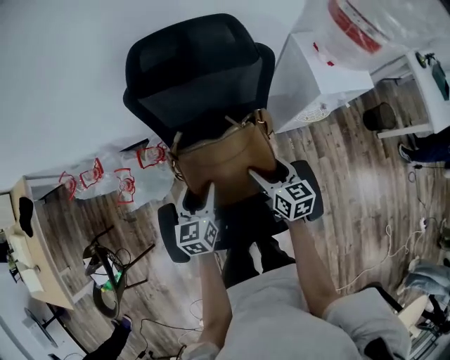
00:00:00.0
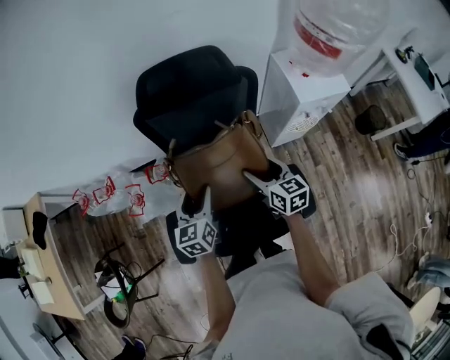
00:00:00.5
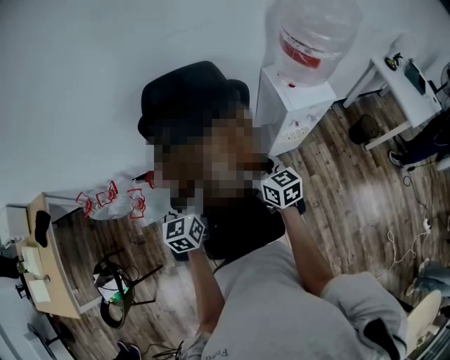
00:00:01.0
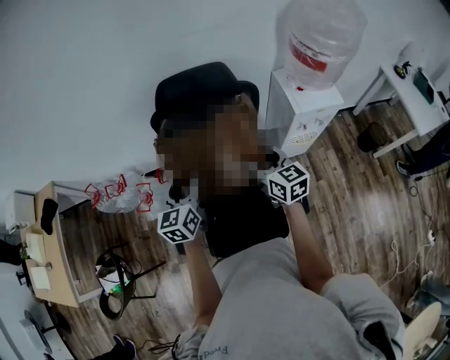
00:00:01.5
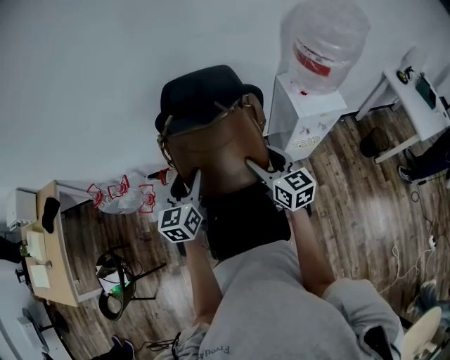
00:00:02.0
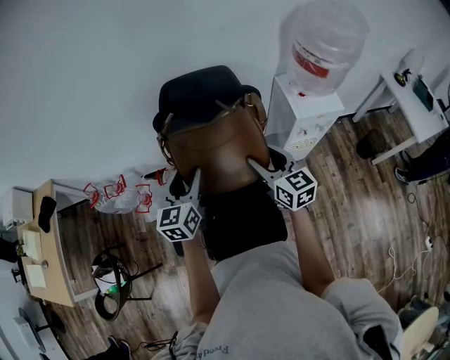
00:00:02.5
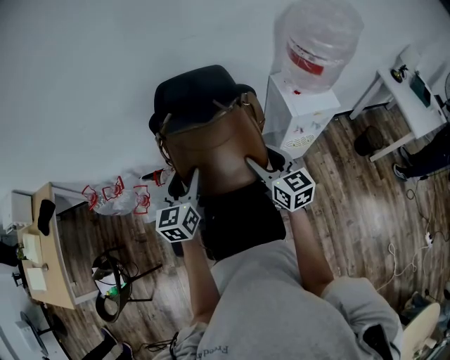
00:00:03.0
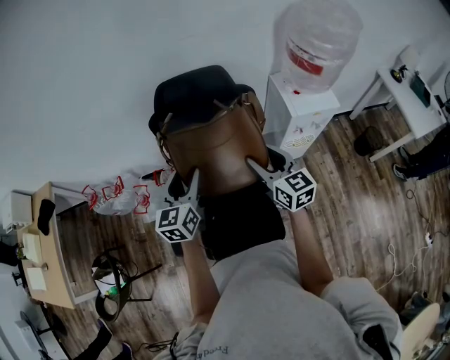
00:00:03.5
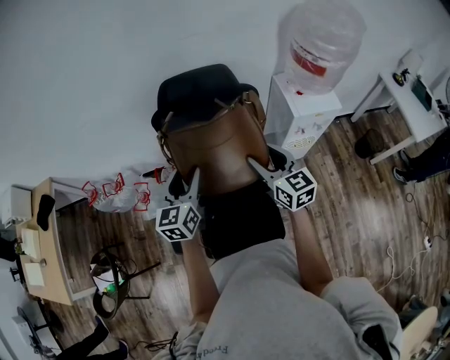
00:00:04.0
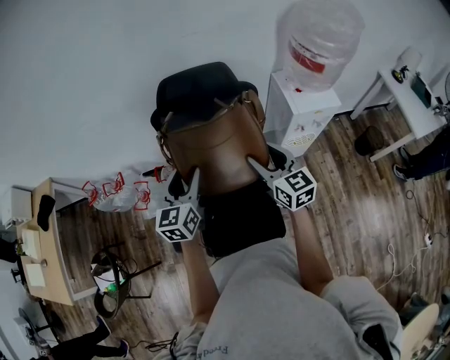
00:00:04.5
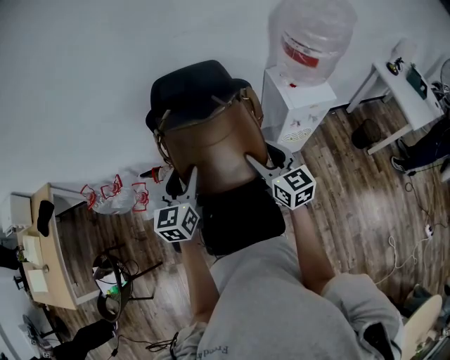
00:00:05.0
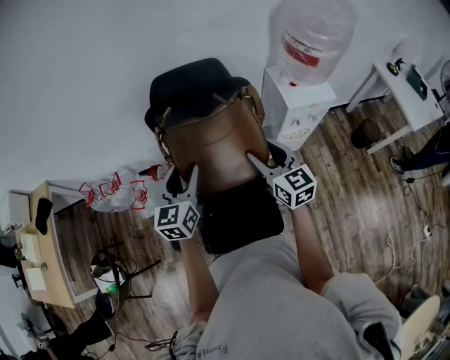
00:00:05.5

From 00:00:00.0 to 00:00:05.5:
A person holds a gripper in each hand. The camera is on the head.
From 00:00:00.0 to 00:00:02.0: The grippers both shift upward by approximately 25 cm. The right gripper rotates approximately 20 degrees.
From 00:00:02.0 to 00:00:05.5: There are only small adjustments of the grippers.

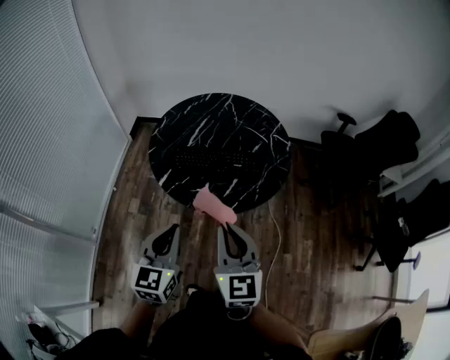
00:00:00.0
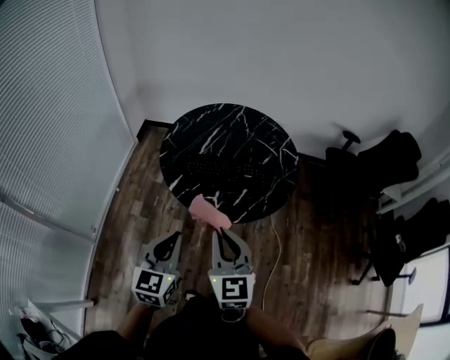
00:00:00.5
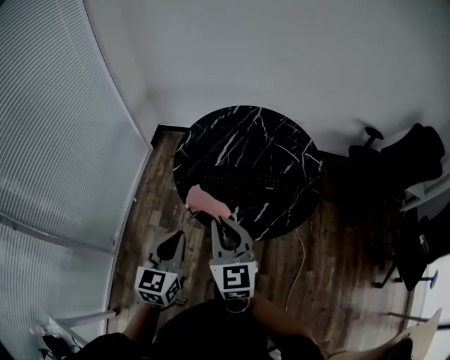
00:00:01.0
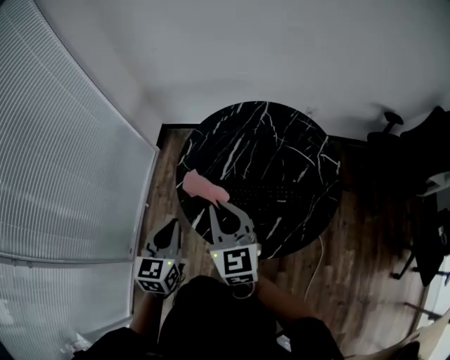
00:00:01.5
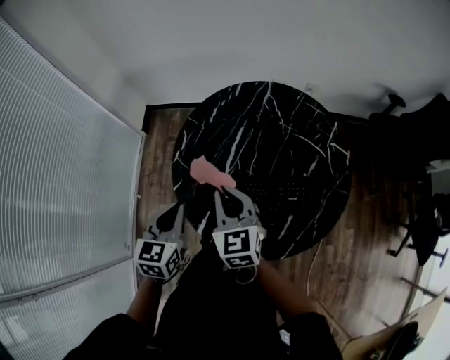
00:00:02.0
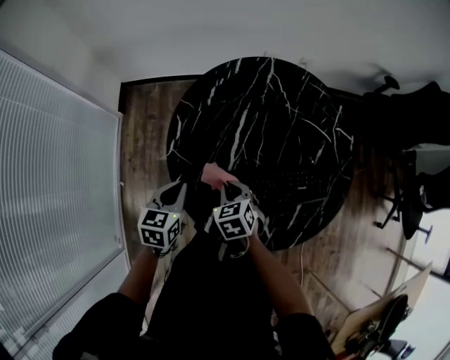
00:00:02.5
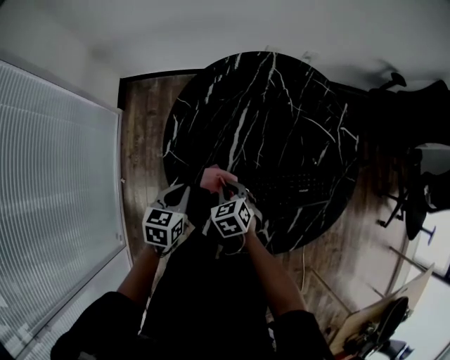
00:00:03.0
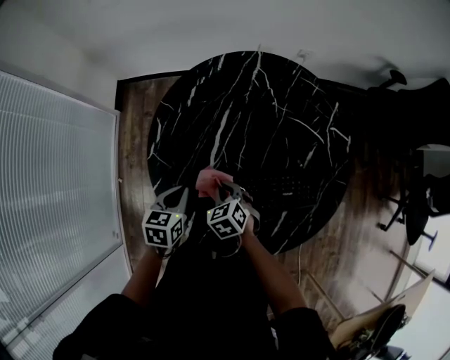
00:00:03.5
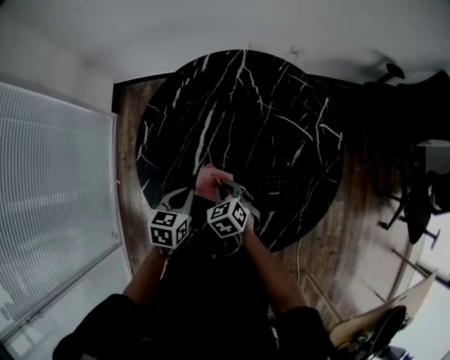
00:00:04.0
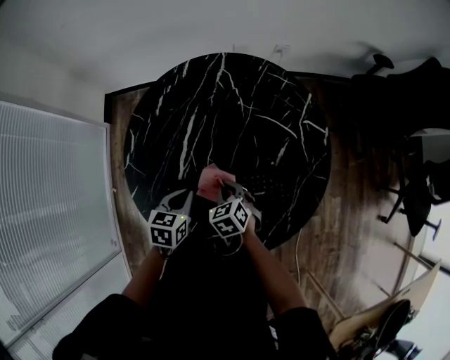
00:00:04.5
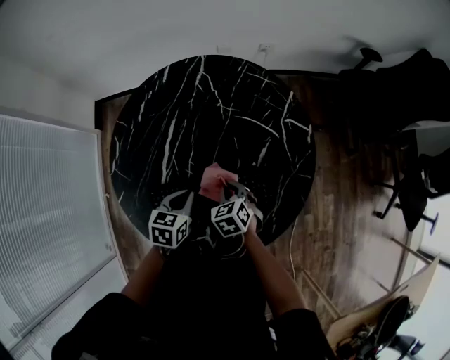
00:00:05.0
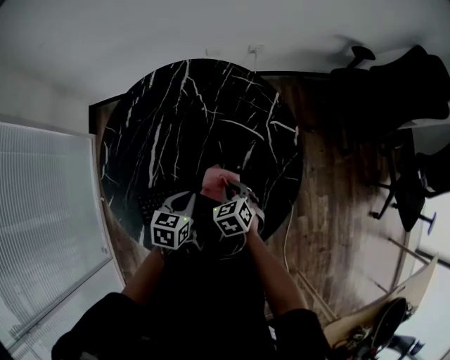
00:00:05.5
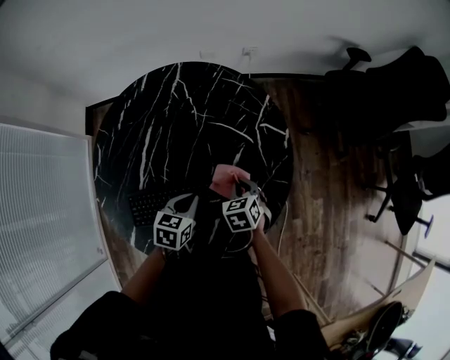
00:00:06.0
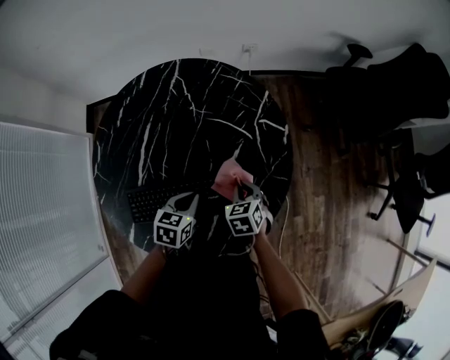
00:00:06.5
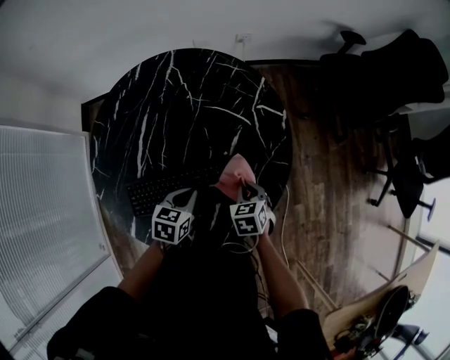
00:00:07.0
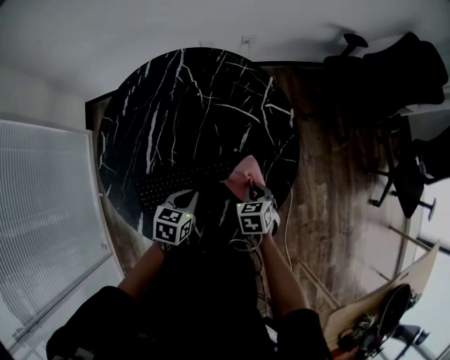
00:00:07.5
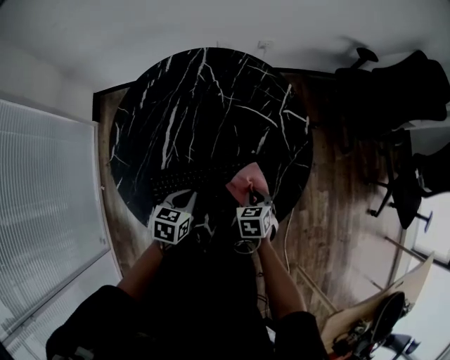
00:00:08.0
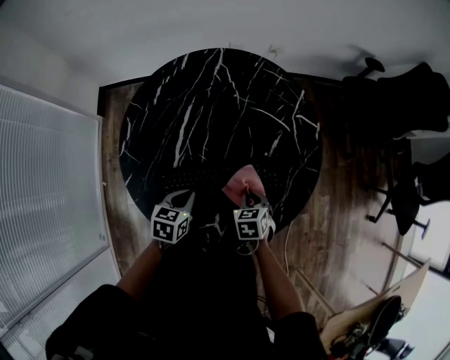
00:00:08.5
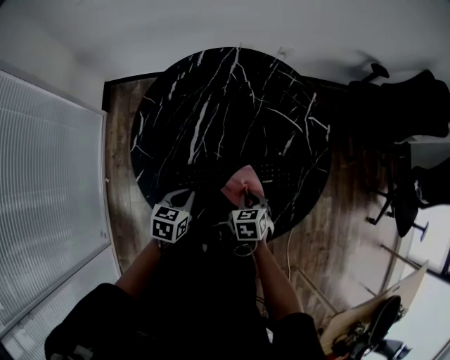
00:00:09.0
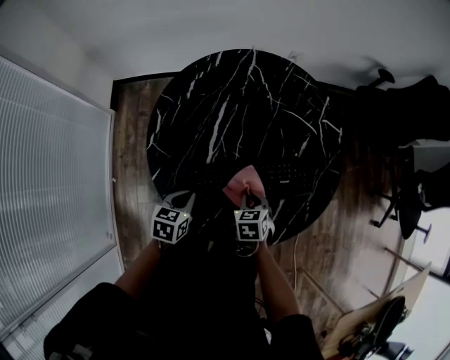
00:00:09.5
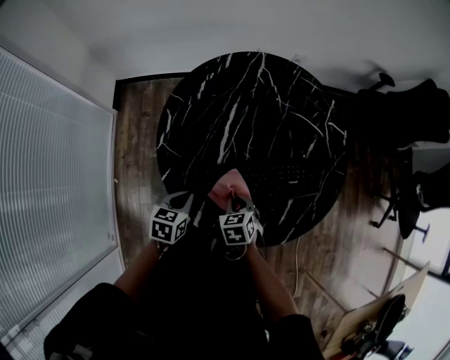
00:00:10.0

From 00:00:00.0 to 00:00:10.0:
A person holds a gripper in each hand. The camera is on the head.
From 00:00:00.0 to 00:00:02.0: Both grippers are carried forward and to the left, about 40 cm.
From 00:00:02.0 to 00:00:04.0: The left gripper heads downward, to the right and forward, covering roughly 20 cm, and turns by approximately 20 degrees, while the right gripper is displaced downward by some 25 cm, and points its fingers approximately 30 degrees further downward.
From 00:00:04.0 to 00:00:06.0: Both grippers travel together to the right, approximately 25 cm.
From 00:00:06.0 to 00:00:08.0: The left gripper heads backward and to the left, covering roughly 10 cm. The right gripper travels backward by approximately 10 cm.
From 00:00:08.0 to 00:00:10.0: Both grippers travel together to the left and backward, roughly 25 cm.

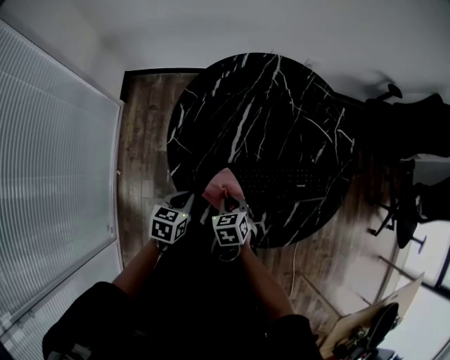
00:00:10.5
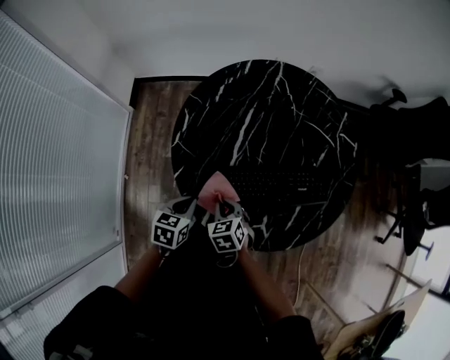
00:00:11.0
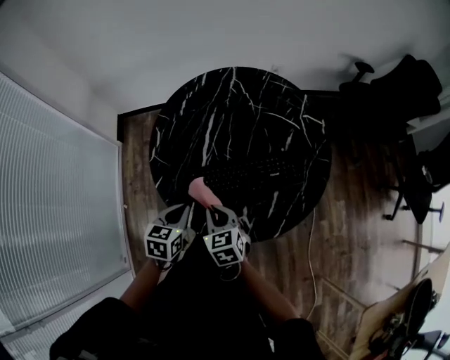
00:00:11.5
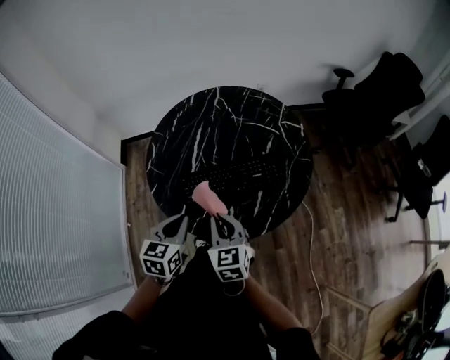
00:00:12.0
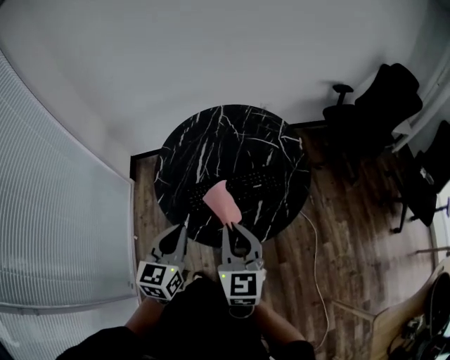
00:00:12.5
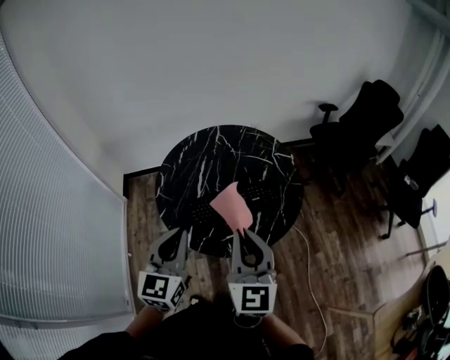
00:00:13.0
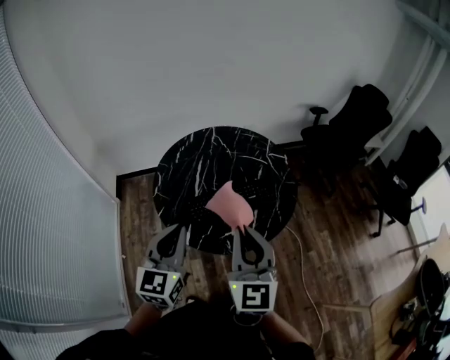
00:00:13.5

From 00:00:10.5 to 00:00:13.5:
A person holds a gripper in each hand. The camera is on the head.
From 00:00:10.5 to 00:00:12.0: Both grippers move upward, to the right and backward, approximately 25 cm. The left gripper changes its angle by about 20 degrees. Meanwhile the right gripper angles its fingers upward, by roughly 30 degrees.
From 00:00:12.0 to 00:00:13.5: The grippers both shift upward by about 20 cm. The left gripper rotates roughly 30 degrees. The right gripper turns by approximately 30 degrees.

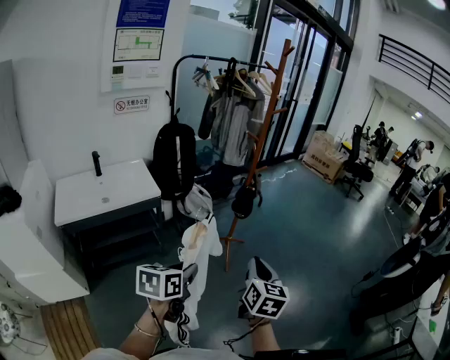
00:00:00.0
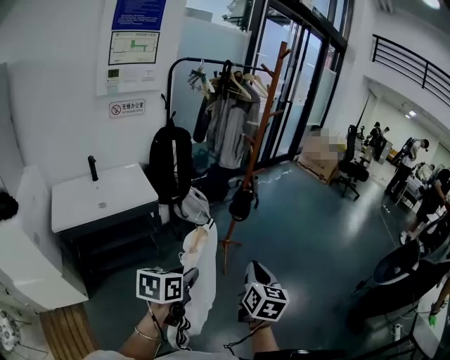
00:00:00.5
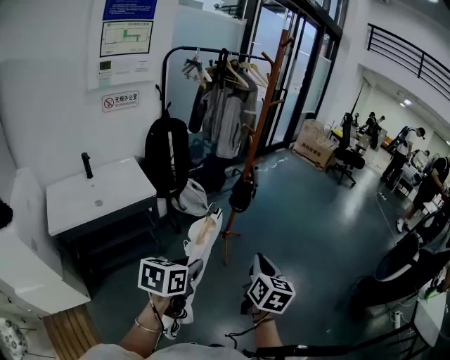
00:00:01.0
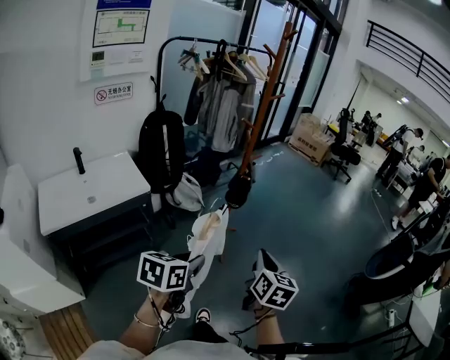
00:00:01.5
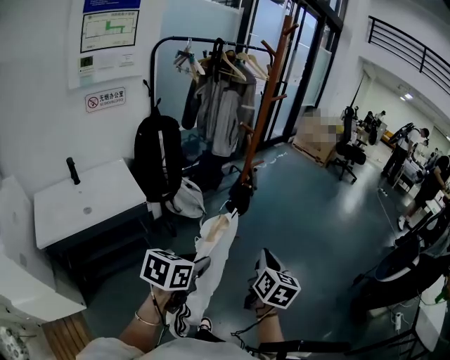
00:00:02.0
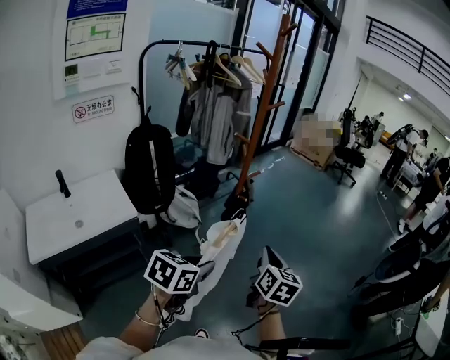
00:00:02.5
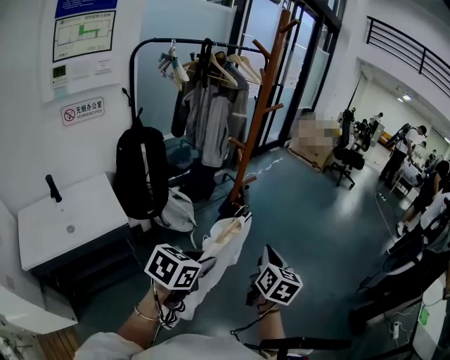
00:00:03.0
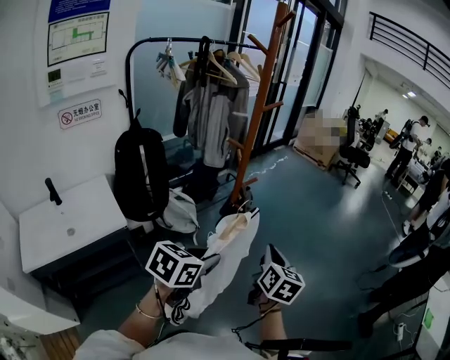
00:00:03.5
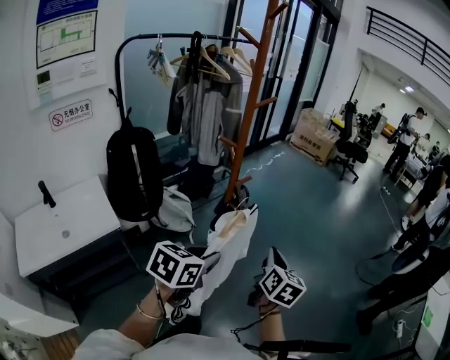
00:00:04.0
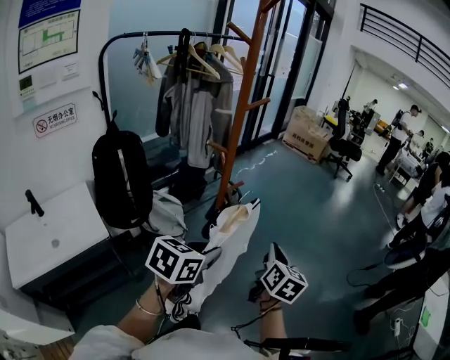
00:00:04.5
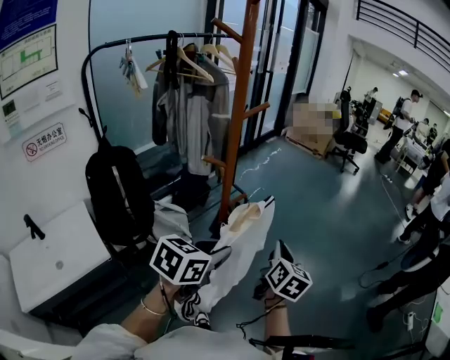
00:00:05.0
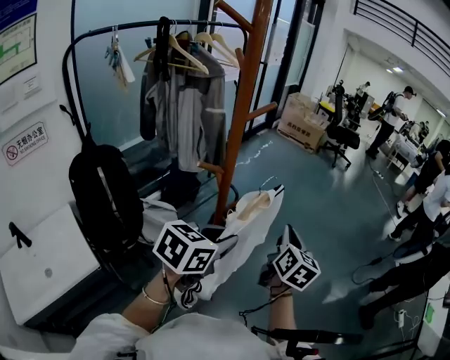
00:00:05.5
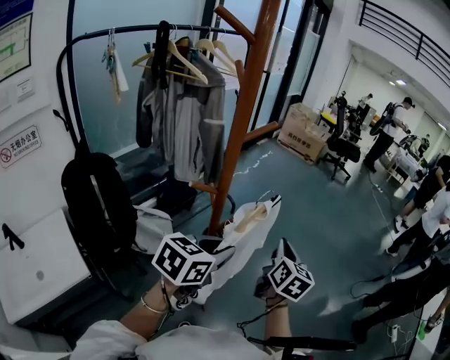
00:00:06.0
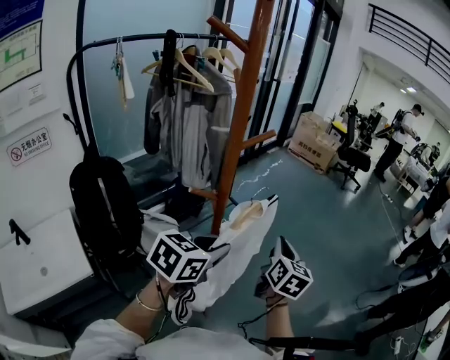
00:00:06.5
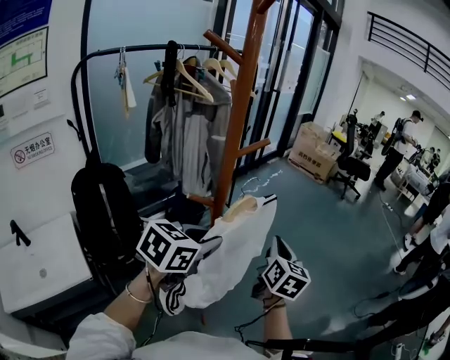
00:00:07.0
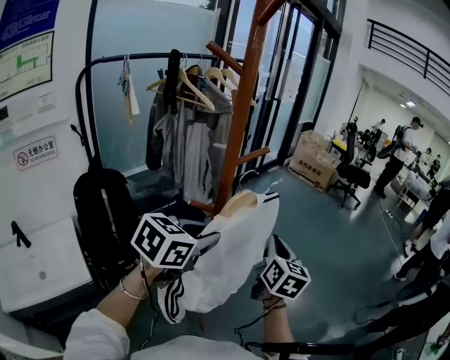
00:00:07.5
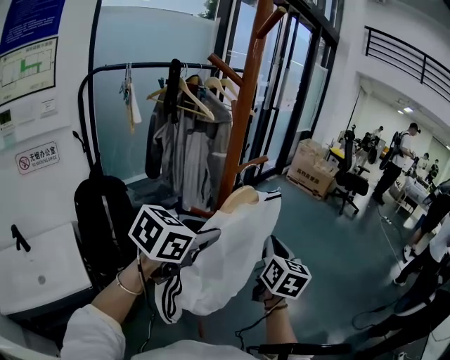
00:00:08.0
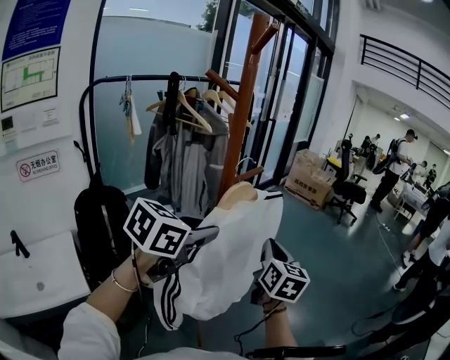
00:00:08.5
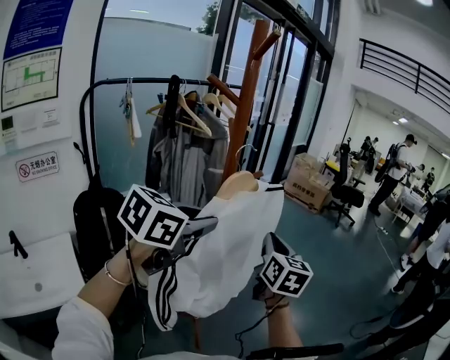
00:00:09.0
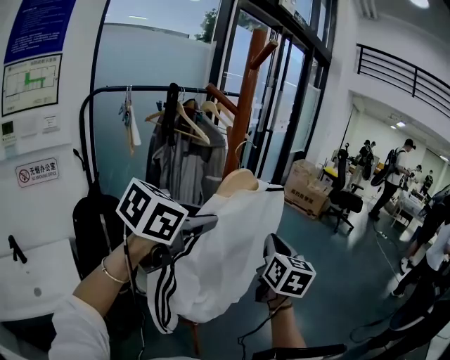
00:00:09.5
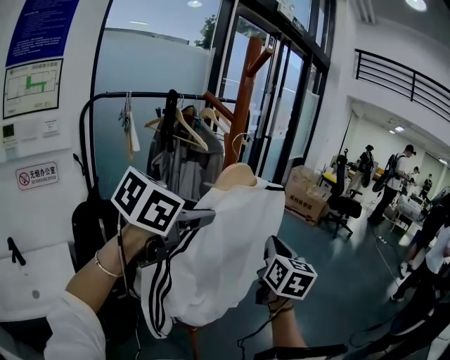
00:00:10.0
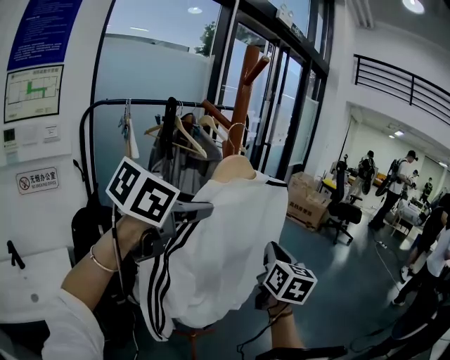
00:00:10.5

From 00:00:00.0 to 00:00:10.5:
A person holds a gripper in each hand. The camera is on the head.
From 00:00:00.0 to 00:00:02.0: Both grippers move forward, some 15 cm.
From 00:00:02.0 to 00:00:04.0: The two grippers go approximately 20 cm forward.
From 00:00:04.0 to 00:00:06.5: Both grippers move forward, about 25 cm.
From 00:00:06.5 to 00:00:08.5: Both grippers move upward, approximately 10 cm.
From 00:00:08.5 to 00:00:10.5: The left gripper shifts roughly 10 cm upward, while the right gripper shifts roughly 5 cm upward.
